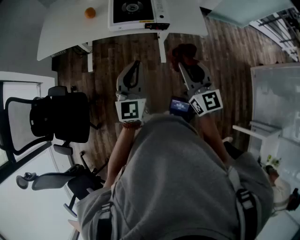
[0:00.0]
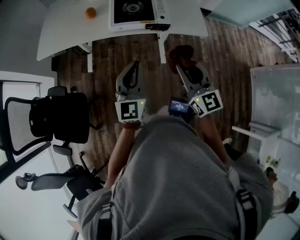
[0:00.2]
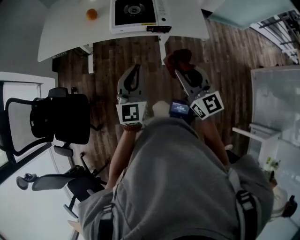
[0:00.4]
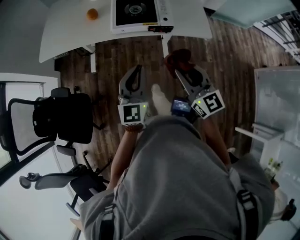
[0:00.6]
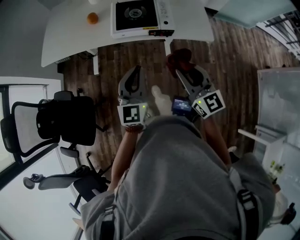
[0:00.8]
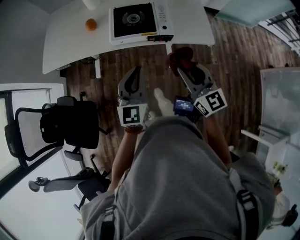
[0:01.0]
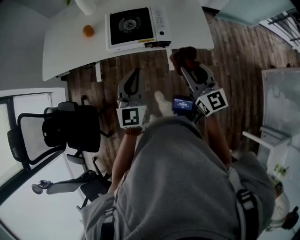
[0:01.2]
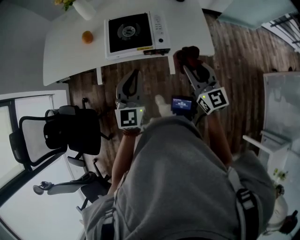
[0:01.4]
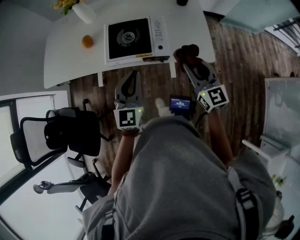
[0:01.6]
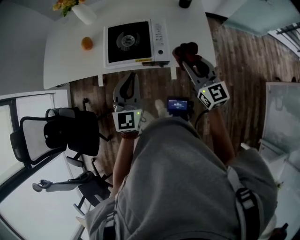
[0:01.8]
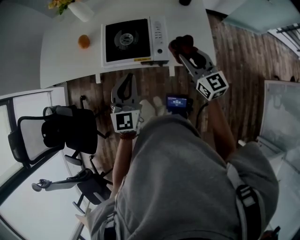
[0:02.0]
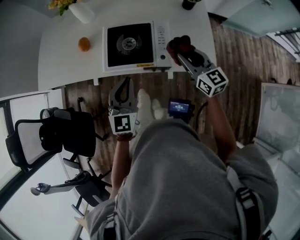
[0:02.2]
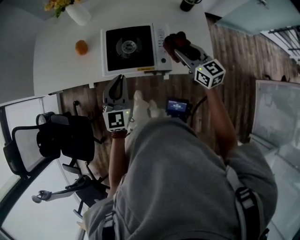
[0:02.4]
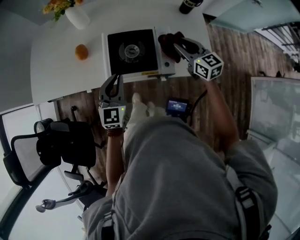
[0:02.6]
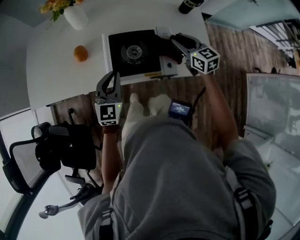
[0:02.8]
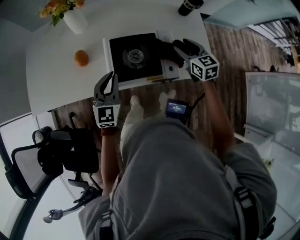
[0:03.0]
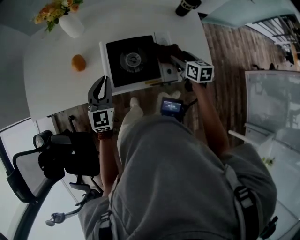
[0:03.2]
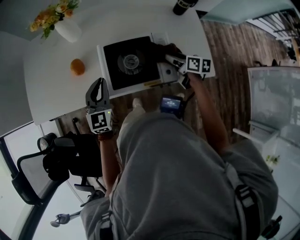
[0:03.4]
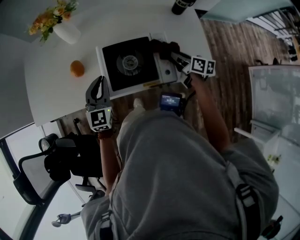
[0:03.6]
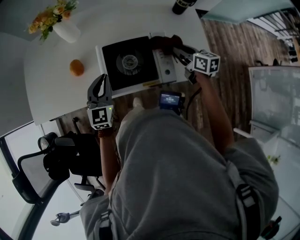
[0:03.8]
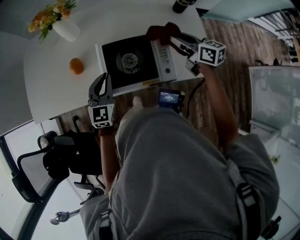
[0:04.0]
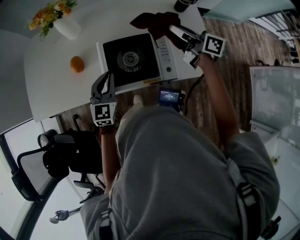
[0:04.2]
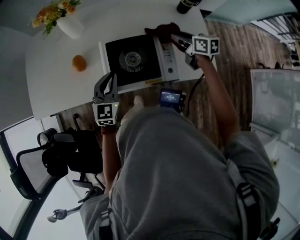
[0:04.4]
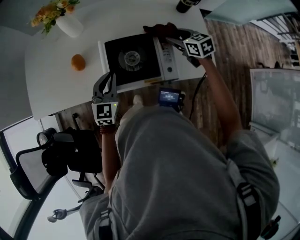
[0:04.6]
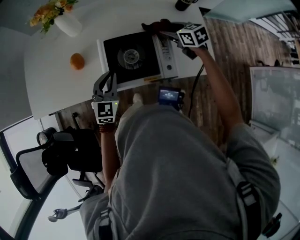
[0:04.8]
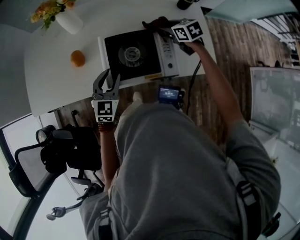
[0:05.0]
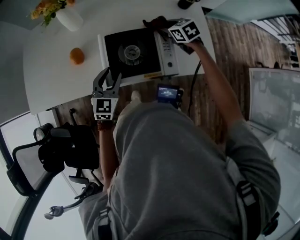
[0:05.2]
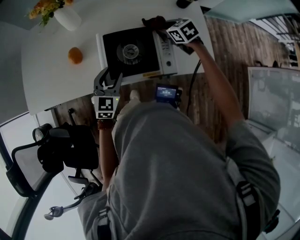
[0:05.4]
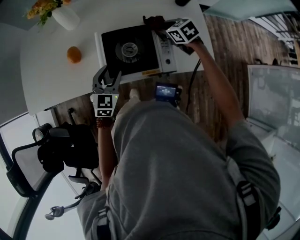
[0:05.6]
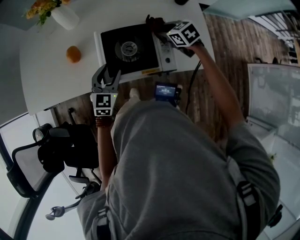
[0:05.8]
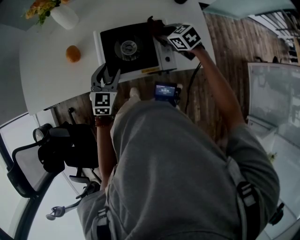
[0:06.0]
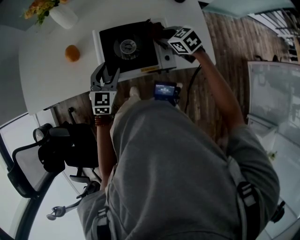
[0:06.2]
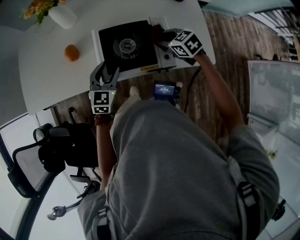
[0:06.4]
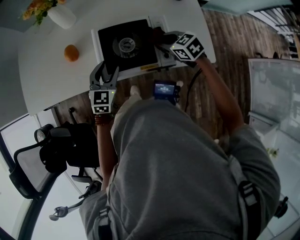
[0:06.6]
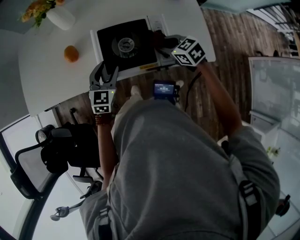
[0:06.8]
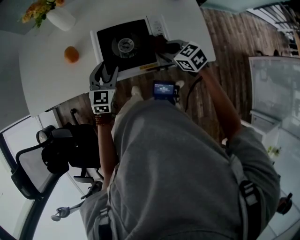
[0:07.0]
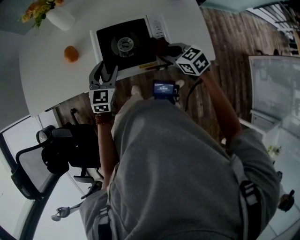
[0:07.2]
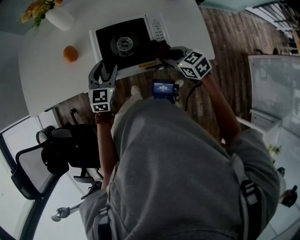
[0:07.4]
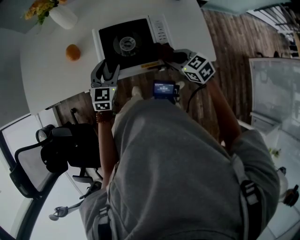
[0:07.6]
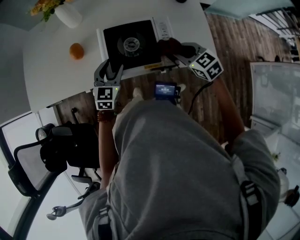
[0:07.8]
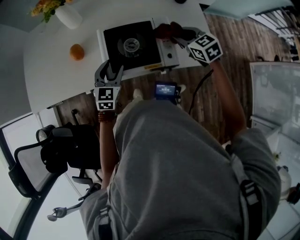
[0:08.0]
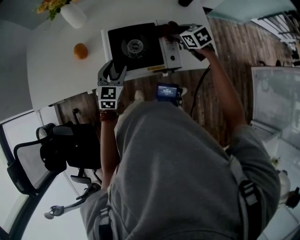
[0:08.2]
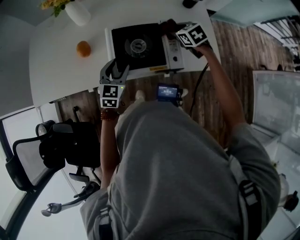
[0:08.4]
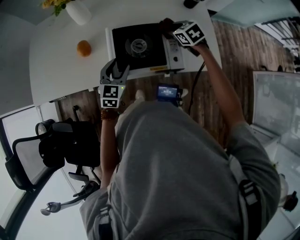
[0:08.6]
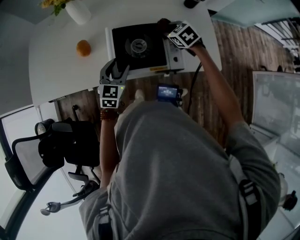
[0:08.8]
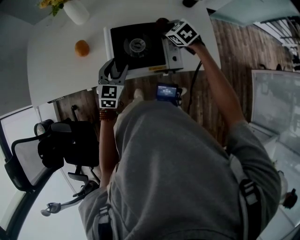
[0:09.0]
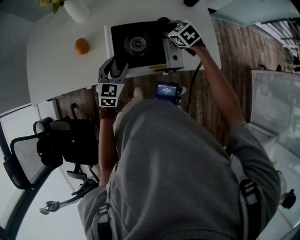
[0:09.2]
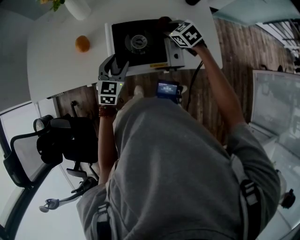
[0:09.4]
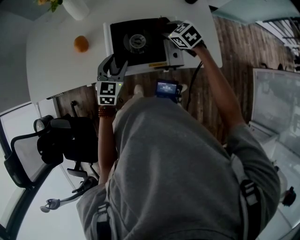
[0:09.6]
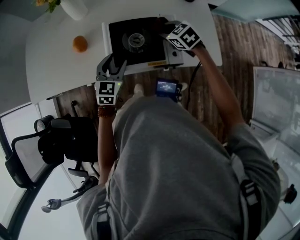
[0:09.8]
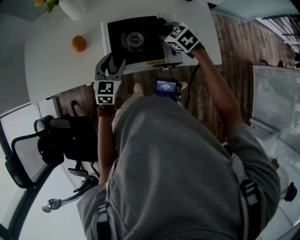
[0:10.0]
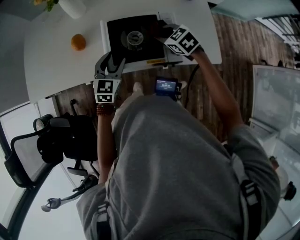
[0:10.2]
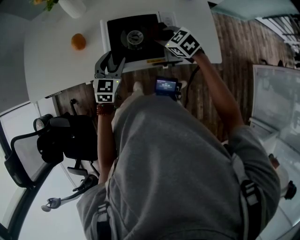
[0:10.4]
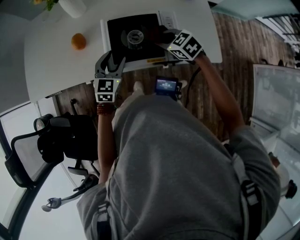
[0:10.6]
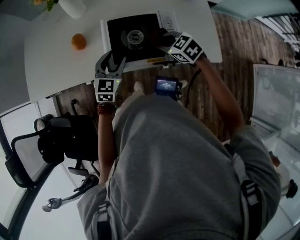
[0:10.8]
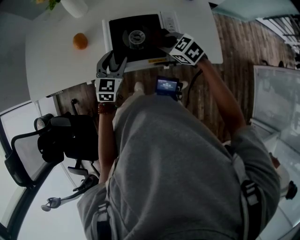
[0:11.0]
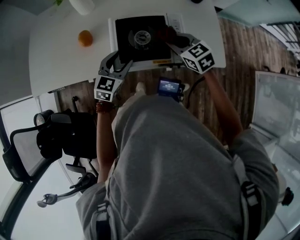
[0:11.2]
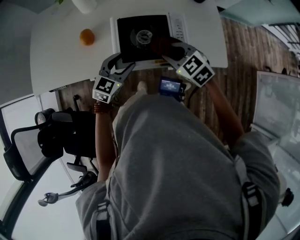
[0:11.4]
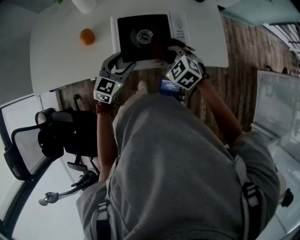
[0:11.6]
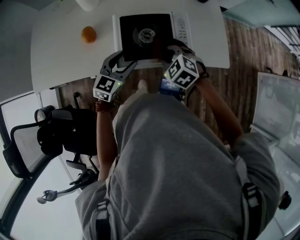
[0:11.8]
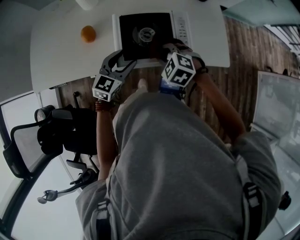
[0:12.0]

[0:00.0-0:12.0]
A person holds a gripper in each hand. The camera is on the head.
0:00.0 to 0:01.6: The right gripper heads forward and to the right, covering about 20 cm. The left gripper moves forward, approximately 15 cm.
0:01.6 to 0:03.0: The right gripper heads forward, covering about 20 cm, turns by some 30 degrees, and opens its fingers. The left gripper shifts some 25 cm forward, to the left and downward.
0:03.0 to 0:04.4: The right gripper moves up and down over approximately 15 cm, changing direction 2 times, turns by about 30 degrees, and closes its fingers.
0:04.4 to 0:06.0: The left gripper ends up approximately 5 cm from where it was, and opens up; the right gripper moves to the left, some 5 cm, swivels roughly 40 degrees, and opens and closes again.
0:06.0 to 0:07.6: The right gripper heads backward, covering some 15 cm.
0:07.6 to 0:09.0: The right gripper shifts approximately 15 cm forward.
0:09.0 to 0:10.4: The right gripper moves backward, roughly 5 cm.
0:10.4 to 0:12.0: The right gripper travels backward and to the left by approximately 10 cm, and turns by approximately 30 degrees.

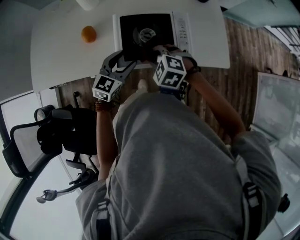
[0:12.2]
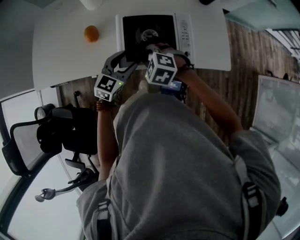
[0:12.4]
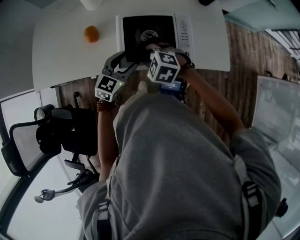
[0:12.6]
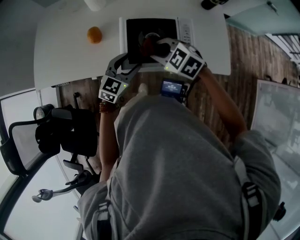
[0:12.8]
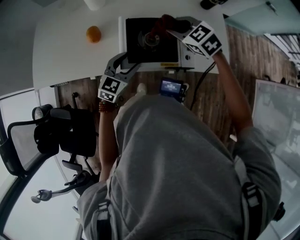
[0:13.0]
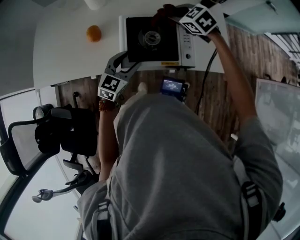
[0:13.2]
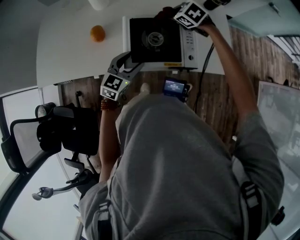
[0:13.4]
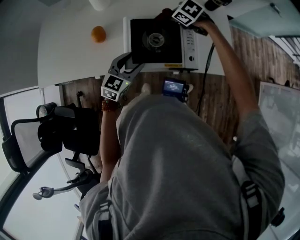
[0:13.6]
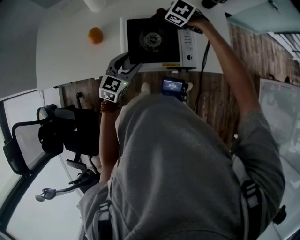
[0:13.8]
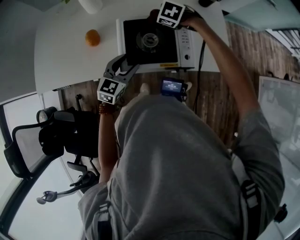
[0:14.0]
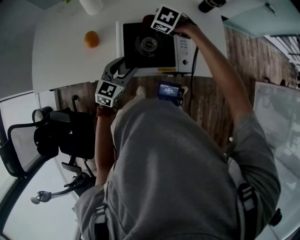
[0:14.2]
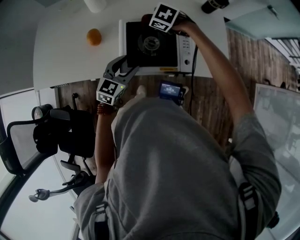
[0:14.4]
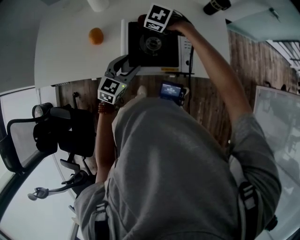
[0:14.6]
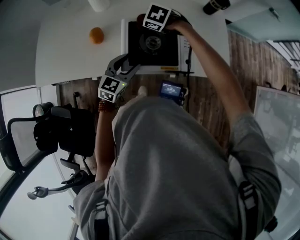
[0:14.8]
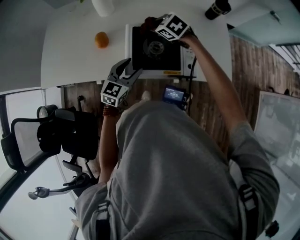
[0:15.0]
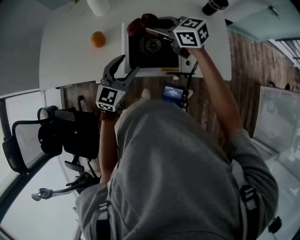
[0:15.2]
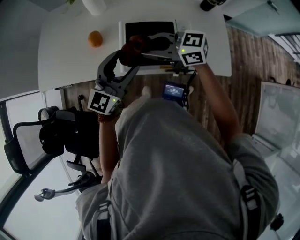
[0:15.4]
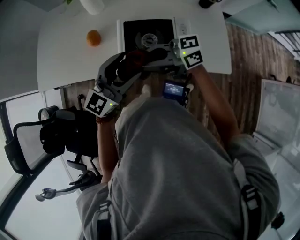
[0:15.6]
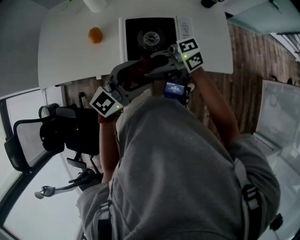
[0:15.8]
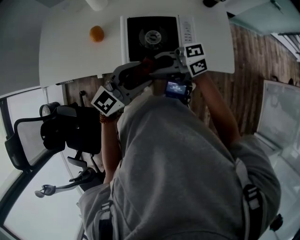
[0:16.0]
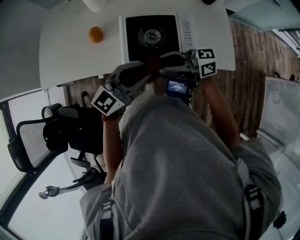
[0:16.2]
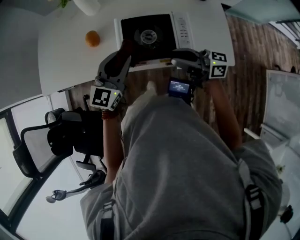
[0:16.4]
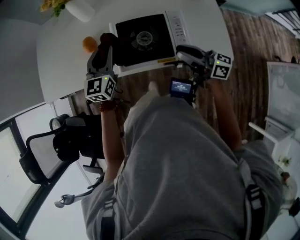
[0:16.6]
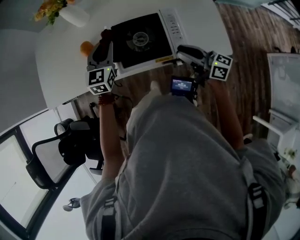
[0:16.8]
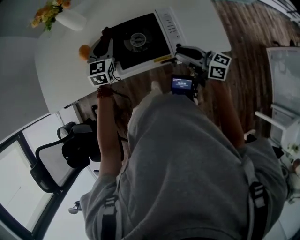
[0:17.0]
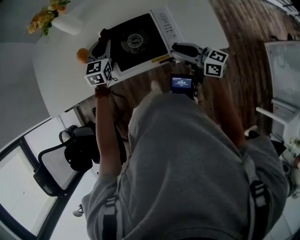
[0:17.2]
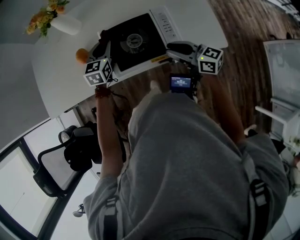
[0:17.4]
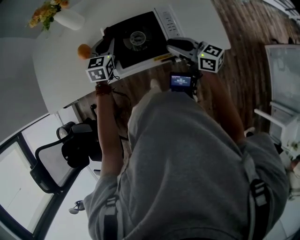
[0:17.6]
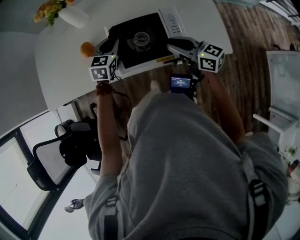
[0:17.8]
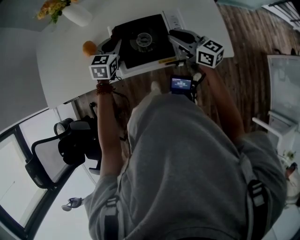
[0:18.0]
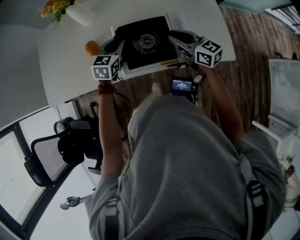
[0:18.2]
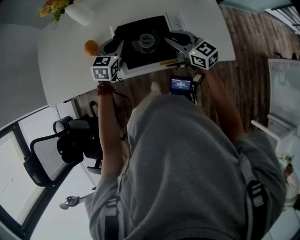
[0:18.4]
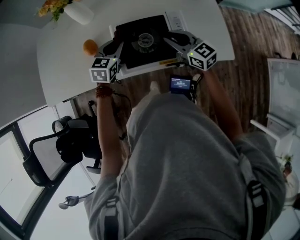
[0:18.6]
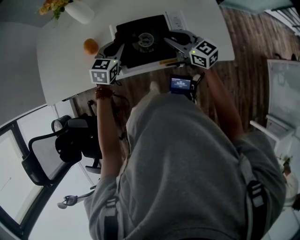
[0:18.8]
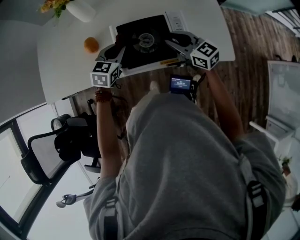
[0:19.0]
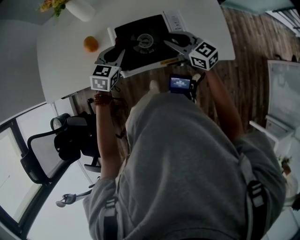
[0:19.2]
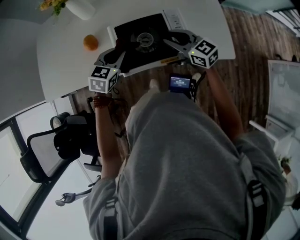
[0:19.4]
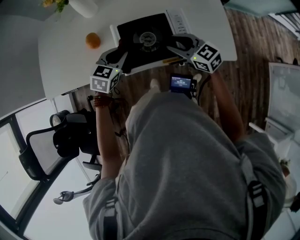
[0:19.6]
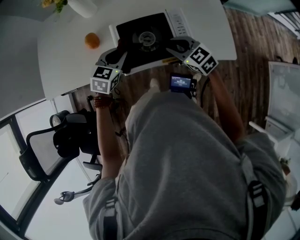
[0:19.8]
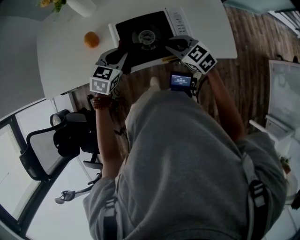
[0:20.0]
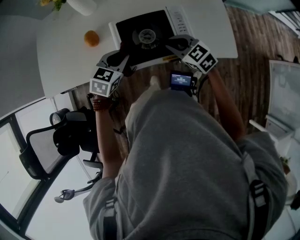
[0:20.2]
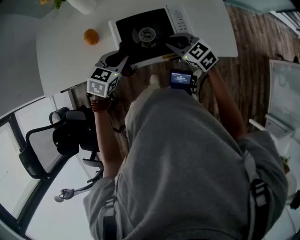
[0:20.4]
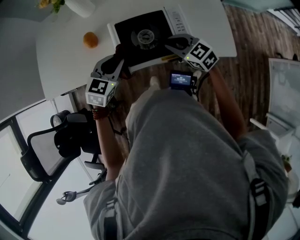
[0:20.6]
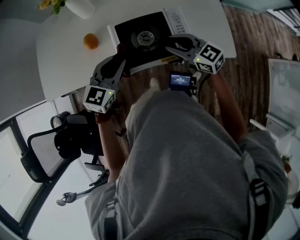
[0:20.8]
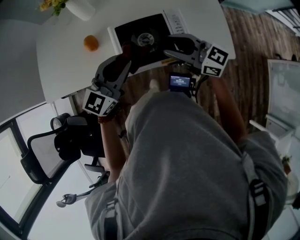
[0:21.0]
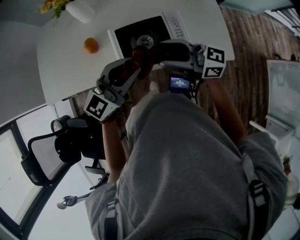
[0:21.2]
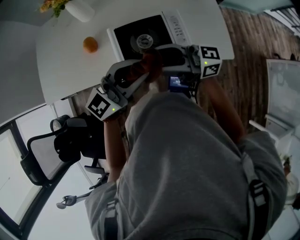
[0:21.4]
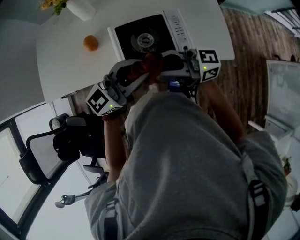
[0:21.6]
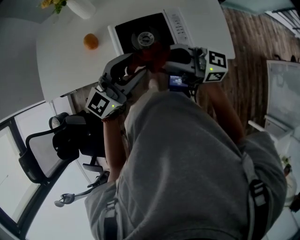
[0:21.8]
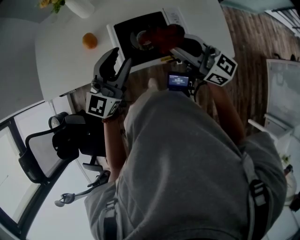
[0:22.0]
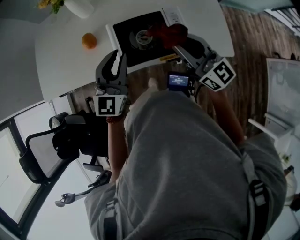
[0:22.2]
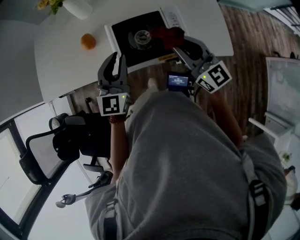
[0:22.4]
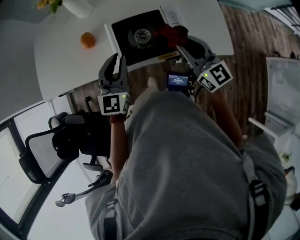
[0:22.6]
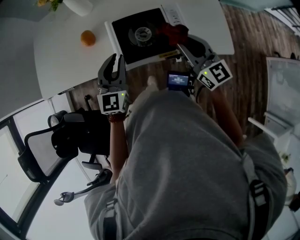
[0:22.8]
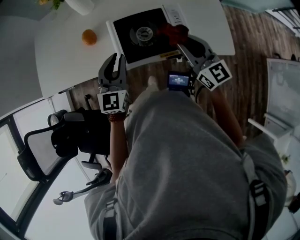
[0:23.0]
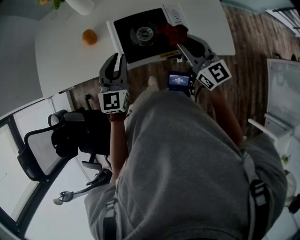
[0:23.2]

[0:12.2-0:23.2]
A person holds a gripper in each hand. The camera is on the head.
0:12.2 to 0:13.8: The right gripper travels forward by roughly 20 cm.
0:13.8 to 0:15.4: The right gripper ends up some 25 cm from where it was, and angles its fingers upward, by some 60 degrees. The left gripper moves upward, some 15 cm, and turns by about 20 degrees.
0:15.4 to 0:17.0: The right gripper ends up roughly 20 cm from where it was, and rotates approximately 40 degrees; the left gripper changes place by roughly 15 cm, rotates approximately 30 degrees, and closes.
0:17.0 to 0:18.4: The right gripper heads forward, covering some 10 cm, and swivels some 30 degrees.
0:18.4 to 0:20.0: The left gripper heads backward, covering roughly 10 cm. The right gripper ends up some 5 cm from where it was, and rotates some 30 degrees.
0:20.0 to 0:21.6: Both grippers travel together upward, roughly 20 cm. The left gripper tilts its fingers roughly 50 degrees upward. Meanwhile the right gripper angles its fingers upward, by roughly 50 degrees, and opens, then closes again.
0:21.6 to 0:23.2: The left gripper travels downward by some 10 cm, and turns by some 50 degrees, while the right gripper shifts by roughly 15 cm, and rotates about 60 degrees.
